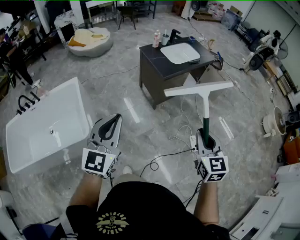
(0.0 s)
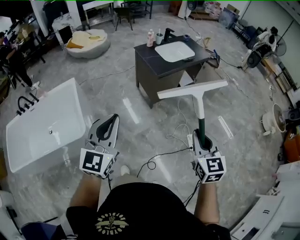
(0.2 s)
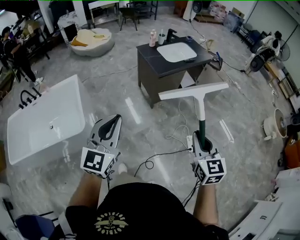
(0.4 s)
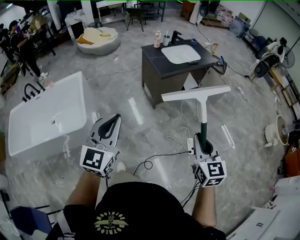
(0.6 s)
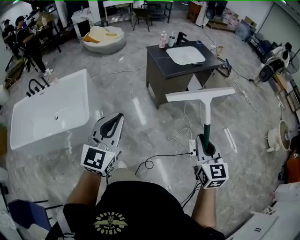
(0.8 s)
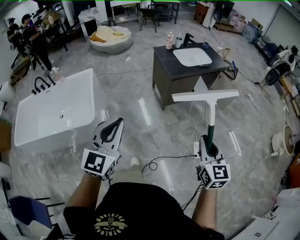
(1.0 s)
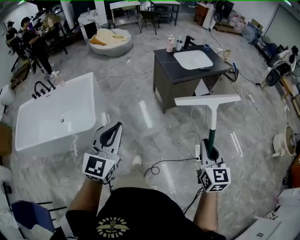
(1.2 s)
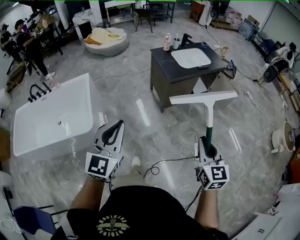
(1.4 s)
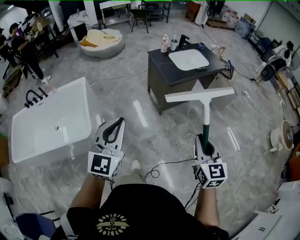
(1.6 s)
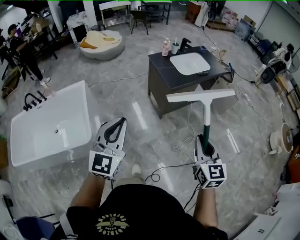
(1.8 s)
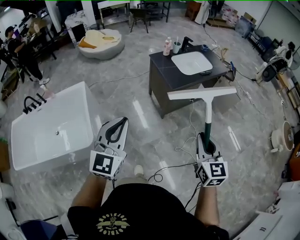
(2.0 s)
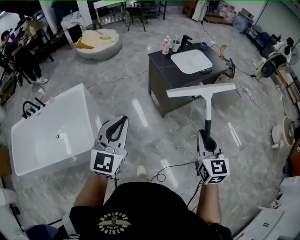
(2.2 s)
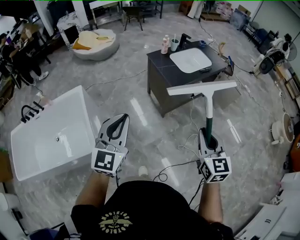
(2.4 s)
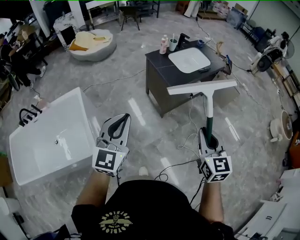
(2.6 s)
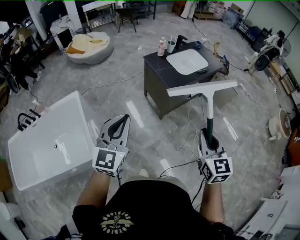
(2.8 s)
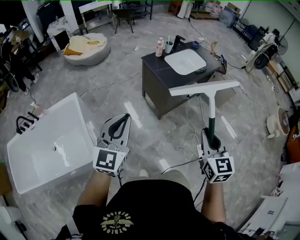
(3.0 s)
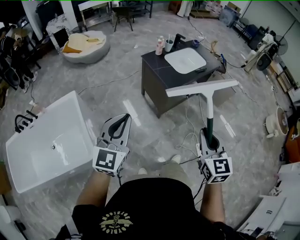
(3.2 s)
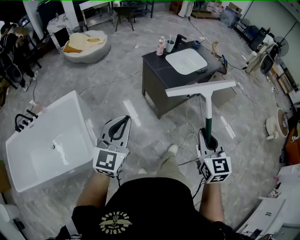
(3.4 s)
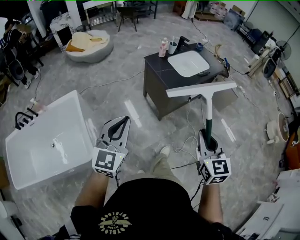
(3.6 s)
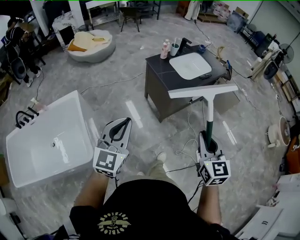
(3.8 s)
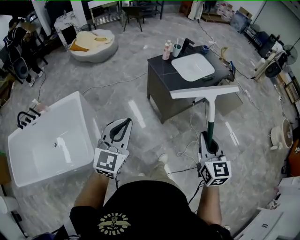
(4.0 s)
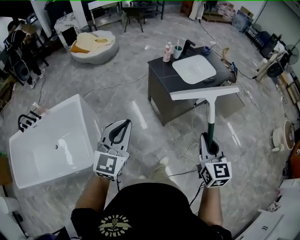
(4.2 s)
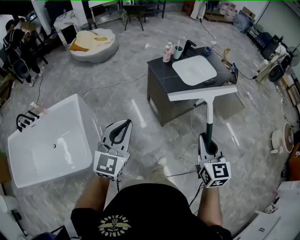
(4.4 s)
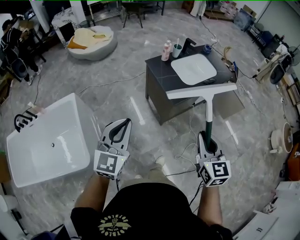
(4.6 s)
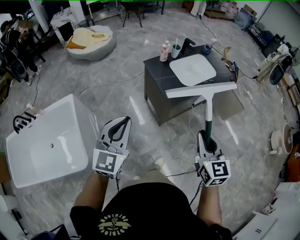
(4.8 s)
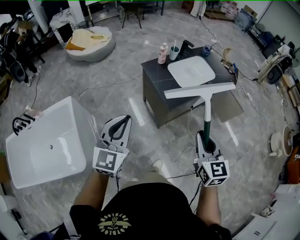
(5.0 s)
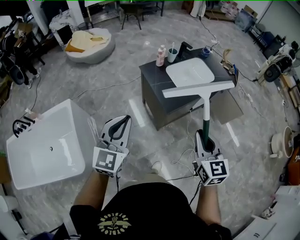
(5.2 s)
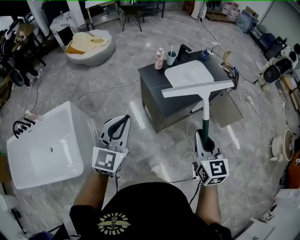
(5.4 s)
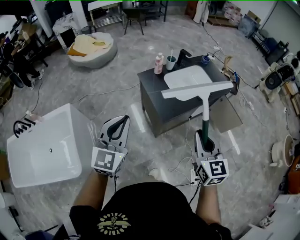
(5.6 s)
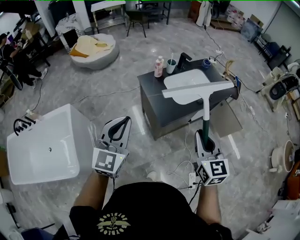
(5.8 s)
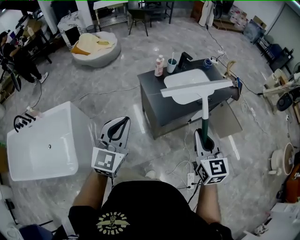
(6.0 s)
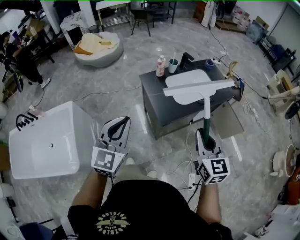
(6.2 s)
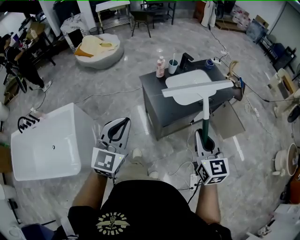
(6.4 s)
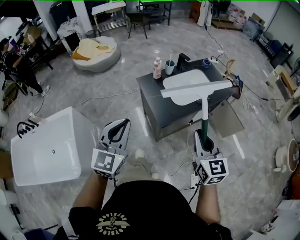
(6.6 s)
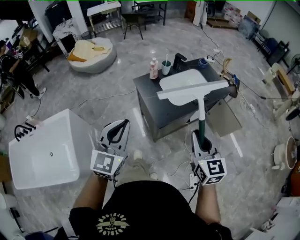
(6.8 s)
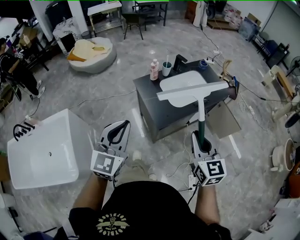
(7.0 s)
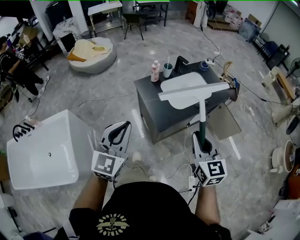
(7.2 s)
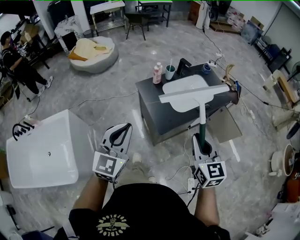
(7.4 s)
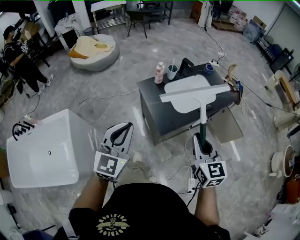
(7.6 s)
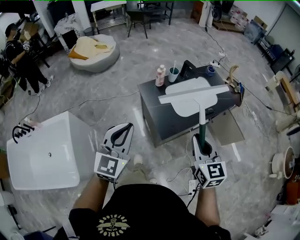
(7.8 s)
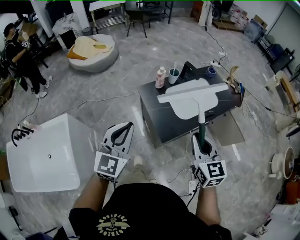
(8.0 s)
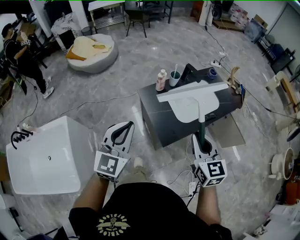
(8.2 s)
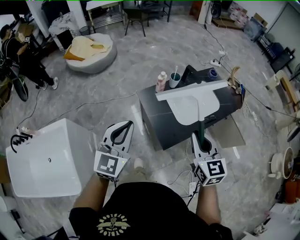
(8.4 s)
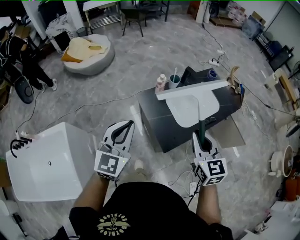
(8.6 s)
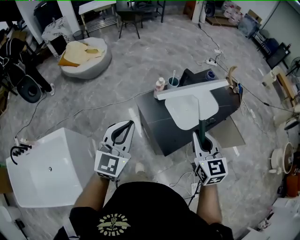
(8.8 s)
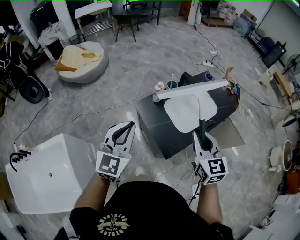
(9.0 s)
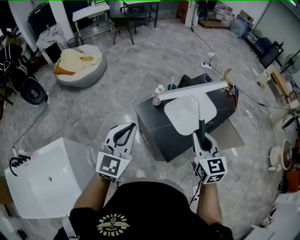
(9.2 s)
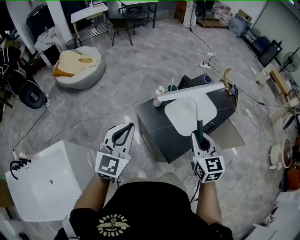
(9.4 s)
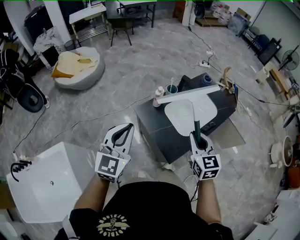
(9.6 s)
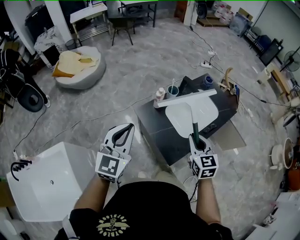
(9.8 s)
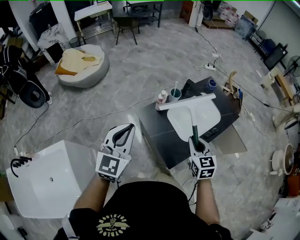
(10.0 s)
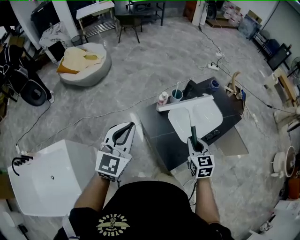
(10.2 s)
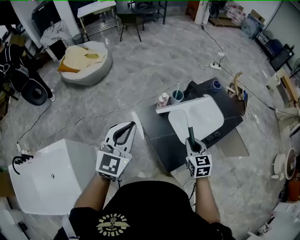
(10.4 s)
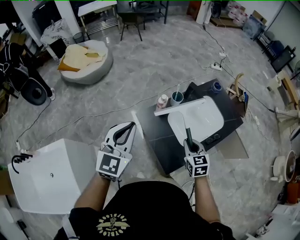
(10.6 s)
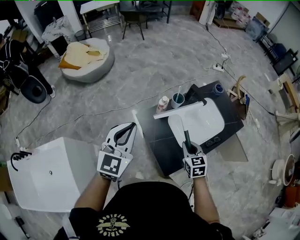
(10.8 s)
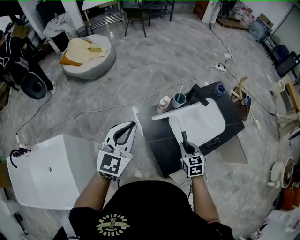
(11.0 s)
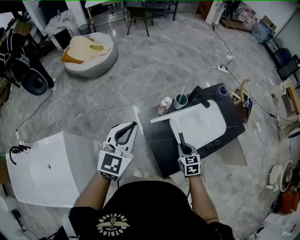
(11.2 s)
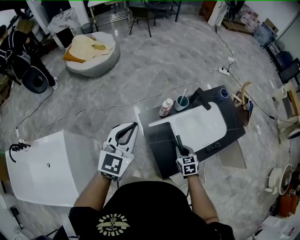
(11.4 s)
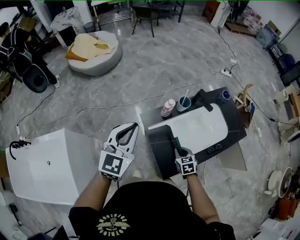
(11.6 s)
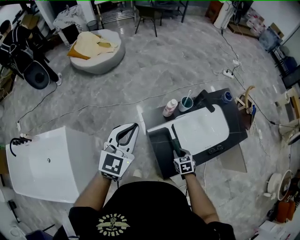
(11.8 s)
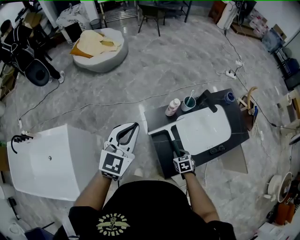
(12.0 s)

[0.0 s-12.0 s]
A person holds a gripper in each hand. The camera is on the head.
0.0 to 1.6 s: The left gripper goes backward and returns, roughly 10 cm each way.
1.6 to 3.0 s: Both grippers travel together forward and to the left, approximately 15 cm.
3.0 to 4.4 s: The two grippers go some 10 cm forward.
4.4 to 6.0 s: Both grippers move forward and to the right, some 20 cm.
6.0 to 7.6 s: The two grippers go about 5 cm forward.
7.6 to 9.0 s: Both grippers travel together forward, some 20 cm.
9.0 to 10.4 s: The left gripper shifts approximately 10 cm forward, while the right gripper is displaced downward and forward by approximately 20 cm.
10.4 to 12.0 s: The right gripper travels downward by roughly 20 cm, and rotates some 30 degrees; the left gripper shifts by some 5 cm.

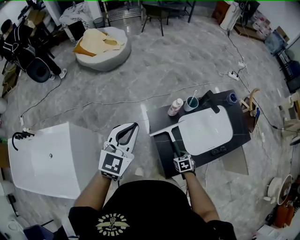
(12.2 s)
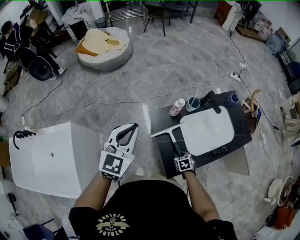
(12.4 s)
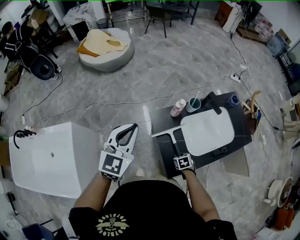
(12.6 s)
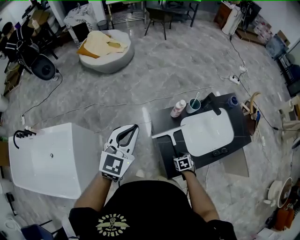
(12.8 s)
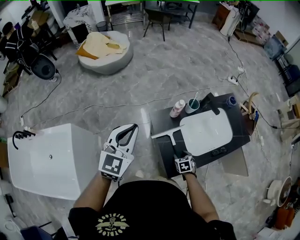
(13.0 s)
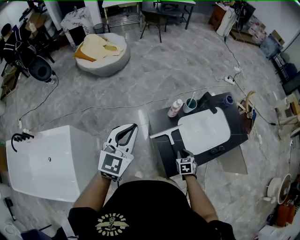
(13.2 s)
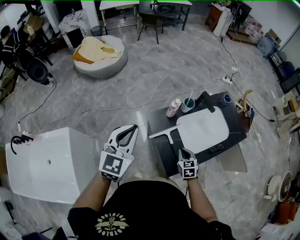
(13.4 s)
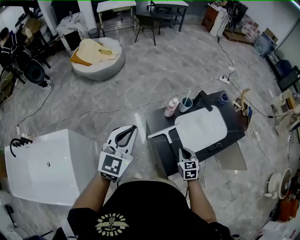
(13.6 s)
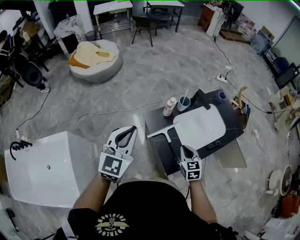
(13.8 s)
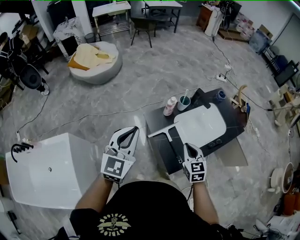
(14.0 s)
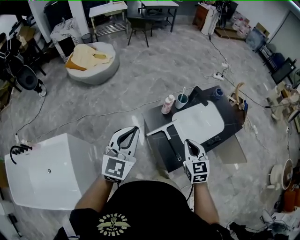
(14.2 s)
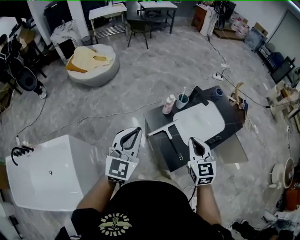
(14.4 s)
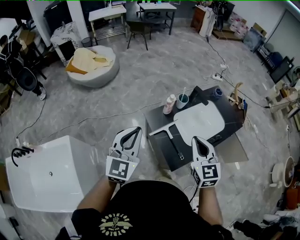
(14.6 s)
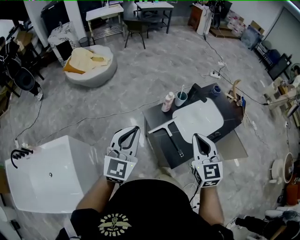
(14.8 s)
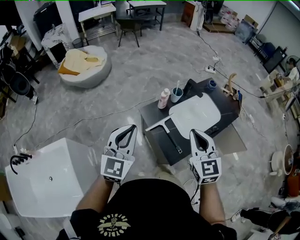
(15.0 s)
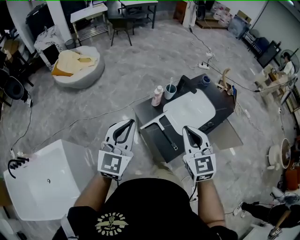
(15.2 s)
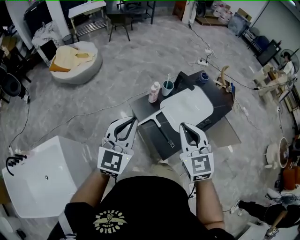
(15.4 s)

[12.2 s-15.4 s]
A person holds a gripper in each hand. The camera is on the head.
12.2 to 13.8 s: The left gripper goes approximately 5 cm backward; the right gripper goes roughly 20 cm upward, turns by approximately 30 degrees, and opens, then closes again.
13.8 to 15.4 s: The right gripper shifts approximately 25 cm upward, and turns by roughly 20 degrees; the left gripper shifts by approximately 5 cm.

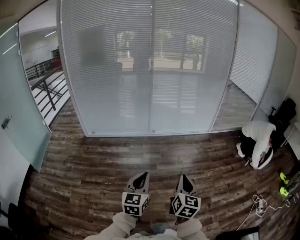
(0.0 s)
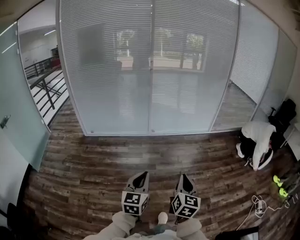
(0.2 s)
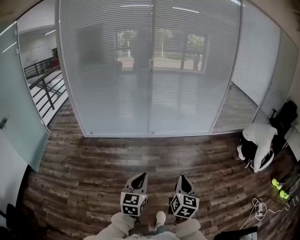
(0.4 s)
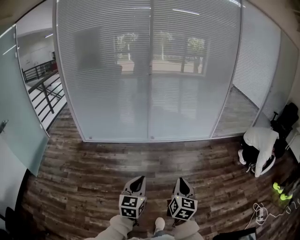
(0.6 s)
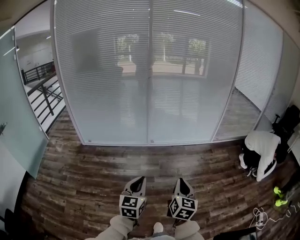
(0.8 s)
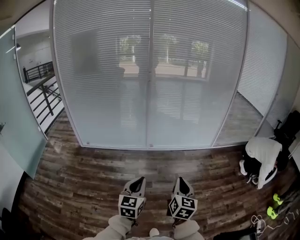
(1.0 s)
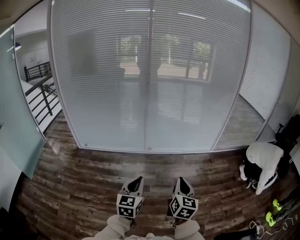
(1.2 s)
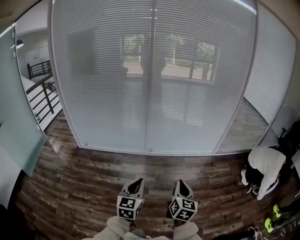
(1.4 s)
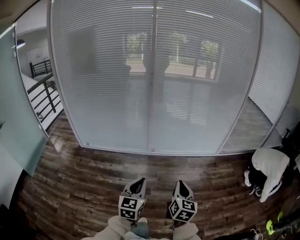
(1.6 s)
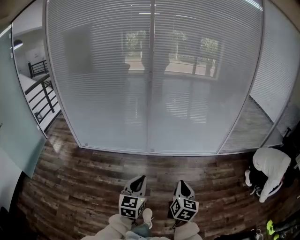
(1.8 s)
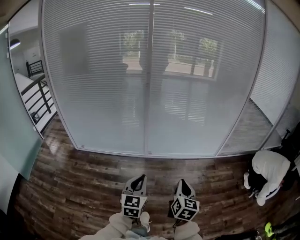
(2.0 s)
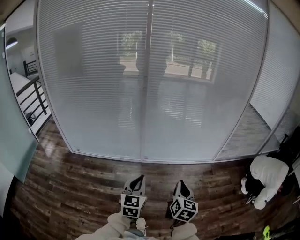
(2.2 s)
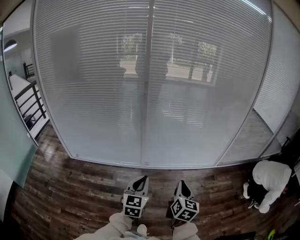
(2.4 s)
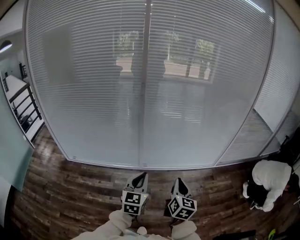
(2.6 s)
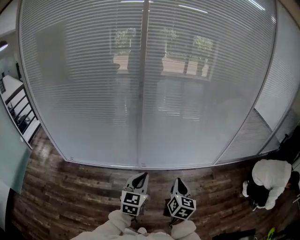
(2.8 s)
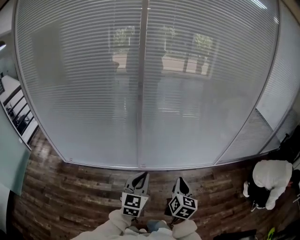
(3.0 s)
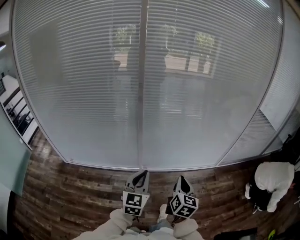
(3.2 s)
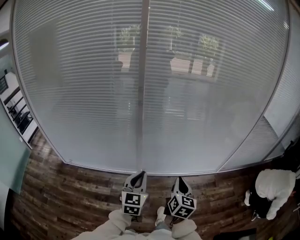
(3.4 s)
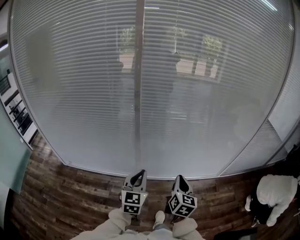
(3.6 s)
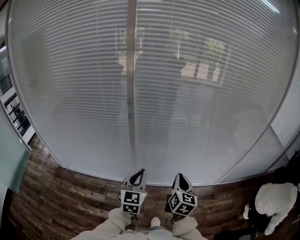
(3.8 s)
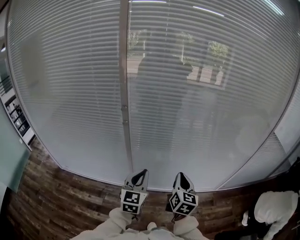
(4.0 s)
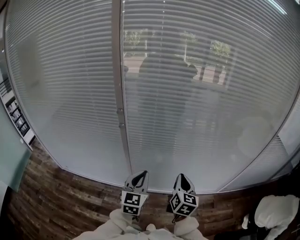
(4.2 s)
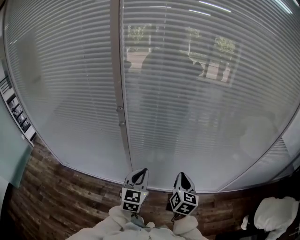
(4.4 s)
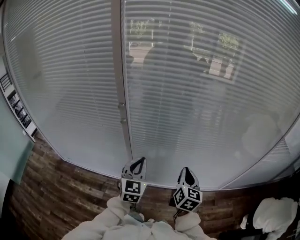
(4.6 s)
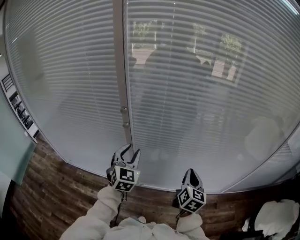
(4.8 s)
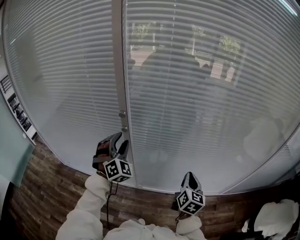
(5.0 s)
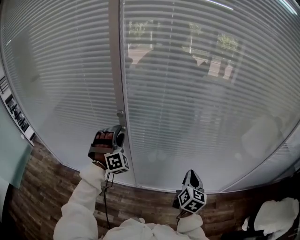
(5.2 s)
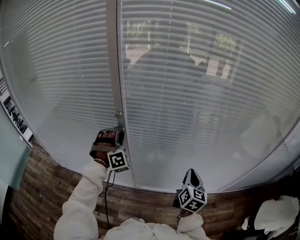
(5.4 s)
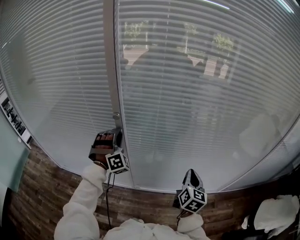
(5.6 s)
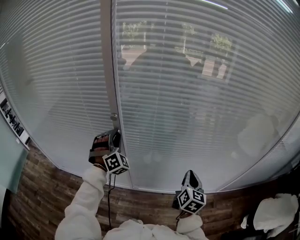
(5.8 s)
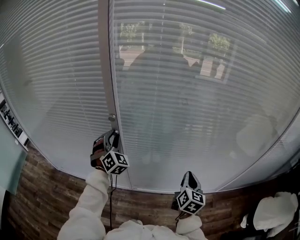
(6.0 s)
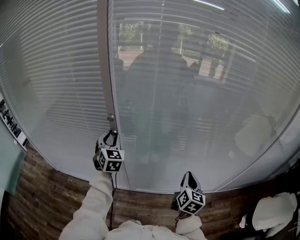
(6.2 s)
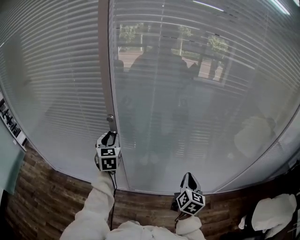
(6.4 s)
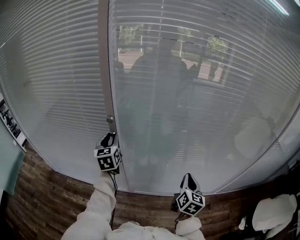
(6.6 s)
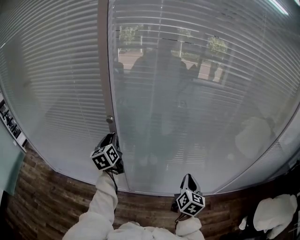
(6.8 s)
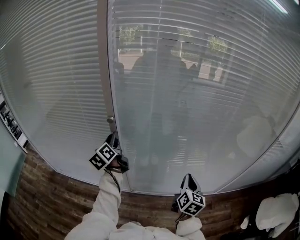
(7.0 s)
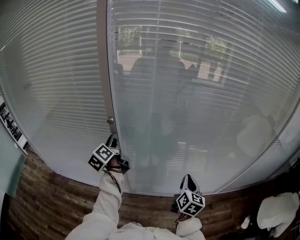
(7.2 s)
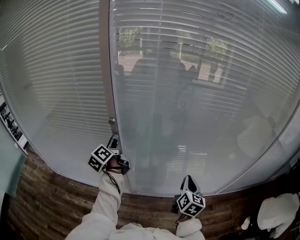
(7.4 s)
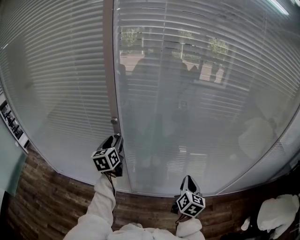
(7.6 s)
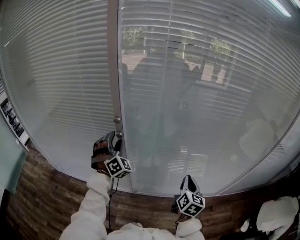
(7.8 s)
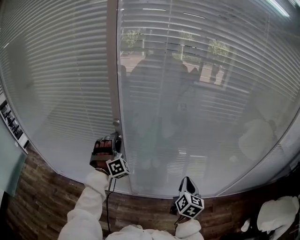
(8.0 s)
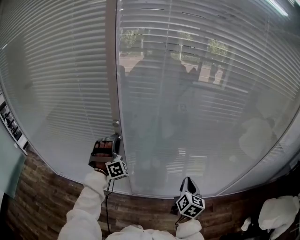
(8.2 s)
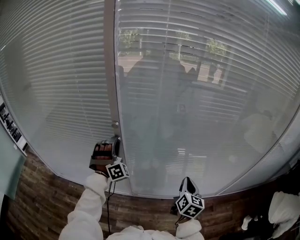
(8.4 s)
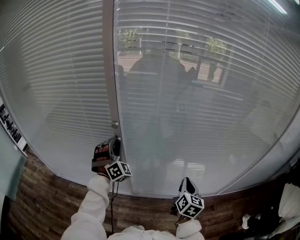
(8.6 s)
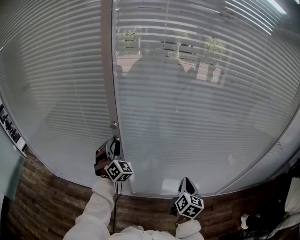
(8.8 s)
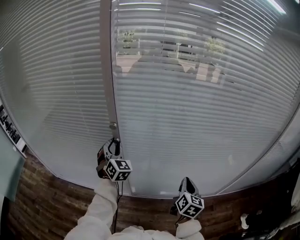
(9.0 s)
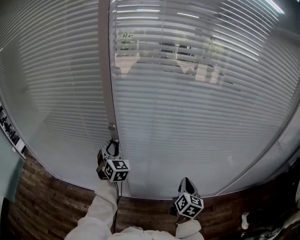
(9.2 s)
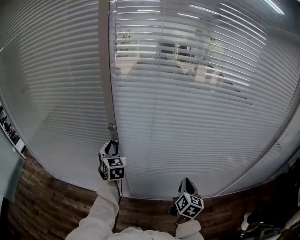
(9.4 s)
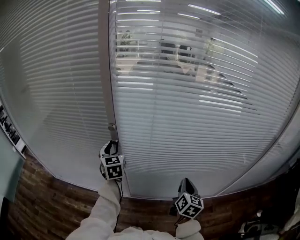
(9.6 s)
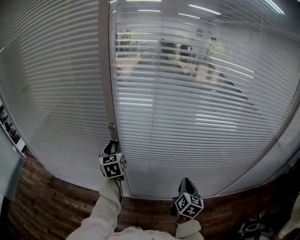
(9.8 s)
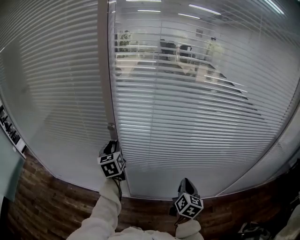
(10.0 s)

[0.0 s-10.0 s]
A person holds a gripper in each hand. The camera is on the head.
0.0 to 1.4 s: Both grippers move forward, approximately 35 cm.
1.4 to 2.8 s: The grippers both shift forward by approximately 35 cm.
2.8 to 4.2 s: Both grippers travel together forward, about 35 cm.
4.2 to 5.8 s: The left gripper goes about 25 cm forward and to the left, twists about 60 degrees clockwise, seen from behind, and opens its fingers. Meanwhile the right gripper goes roughly 10 cm forward.
5.8 to 7.2 s: The left gripper rolls counterclockwise, seen from behind, by about 120 degrees.
7.2 to 8.6 s: The left gripper rolls clockwise, seen from behind, by some 120 degrees, and opens and closes again.
8.6 to 10.0 s: The left gripper rolls counterclockwise, seen from behind, by approximately 80 degrees.
